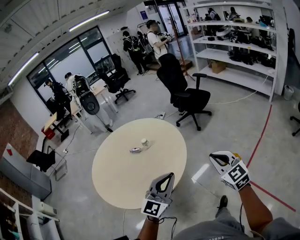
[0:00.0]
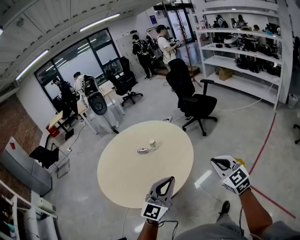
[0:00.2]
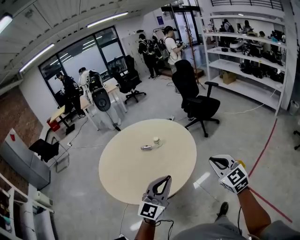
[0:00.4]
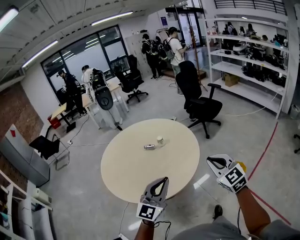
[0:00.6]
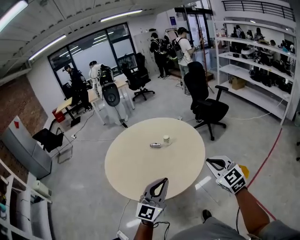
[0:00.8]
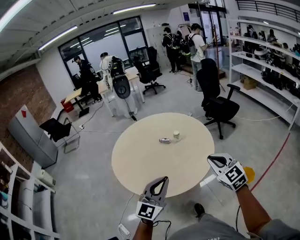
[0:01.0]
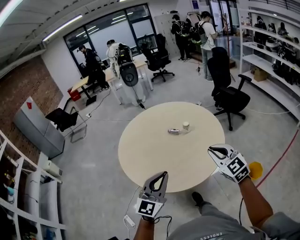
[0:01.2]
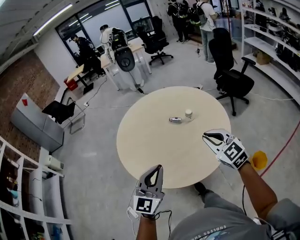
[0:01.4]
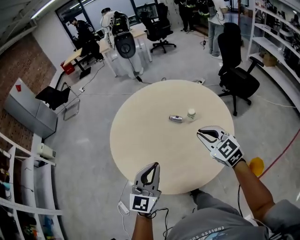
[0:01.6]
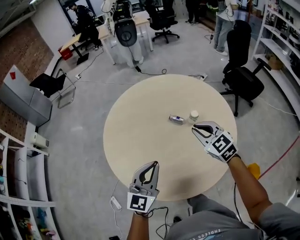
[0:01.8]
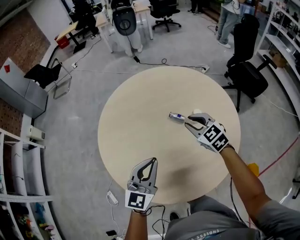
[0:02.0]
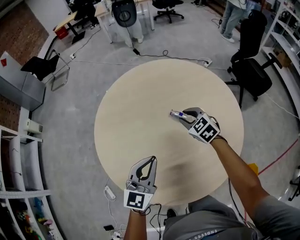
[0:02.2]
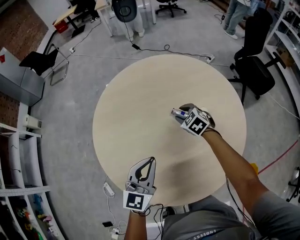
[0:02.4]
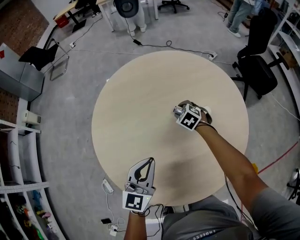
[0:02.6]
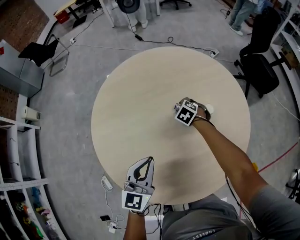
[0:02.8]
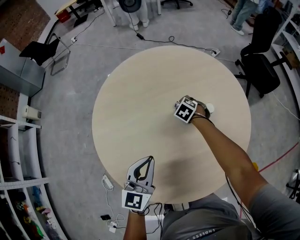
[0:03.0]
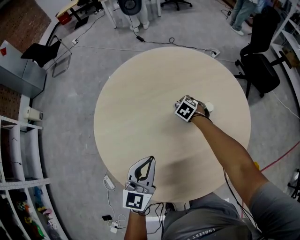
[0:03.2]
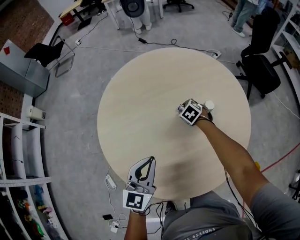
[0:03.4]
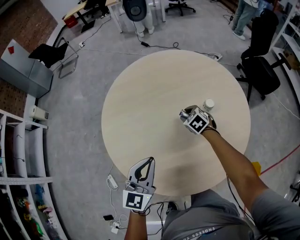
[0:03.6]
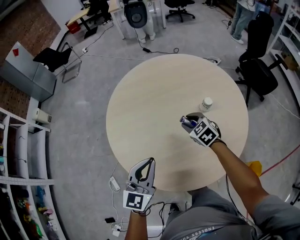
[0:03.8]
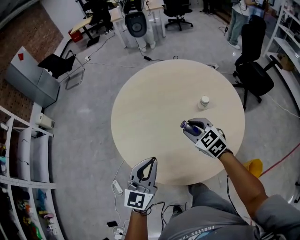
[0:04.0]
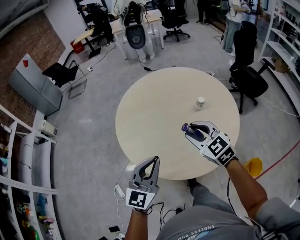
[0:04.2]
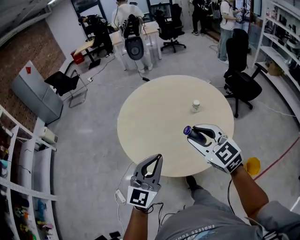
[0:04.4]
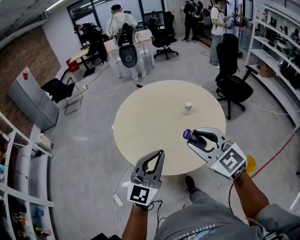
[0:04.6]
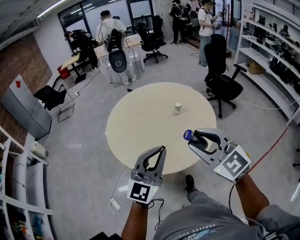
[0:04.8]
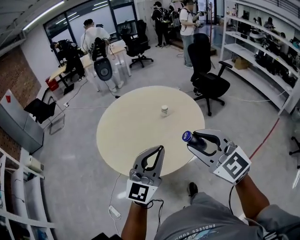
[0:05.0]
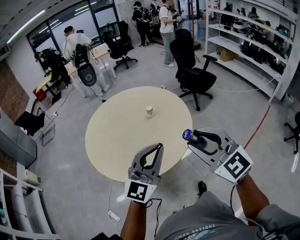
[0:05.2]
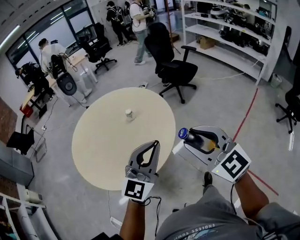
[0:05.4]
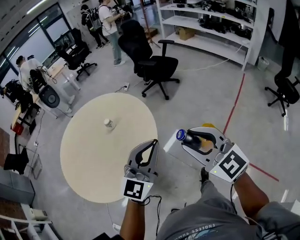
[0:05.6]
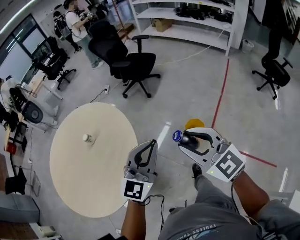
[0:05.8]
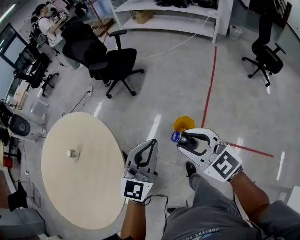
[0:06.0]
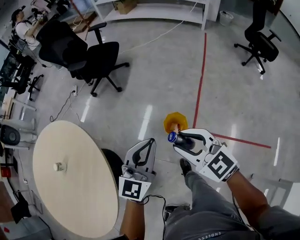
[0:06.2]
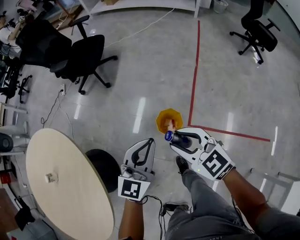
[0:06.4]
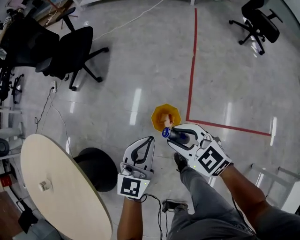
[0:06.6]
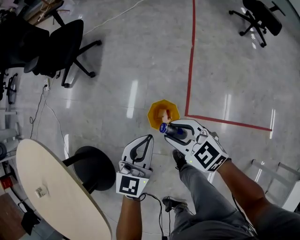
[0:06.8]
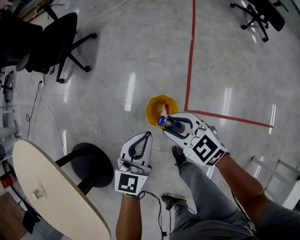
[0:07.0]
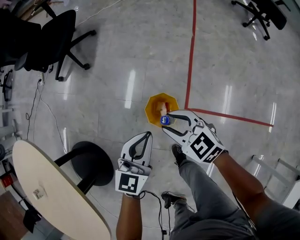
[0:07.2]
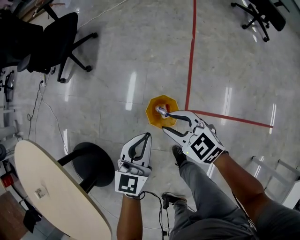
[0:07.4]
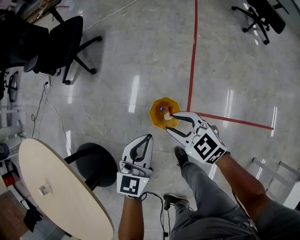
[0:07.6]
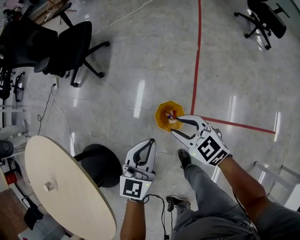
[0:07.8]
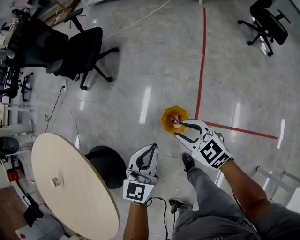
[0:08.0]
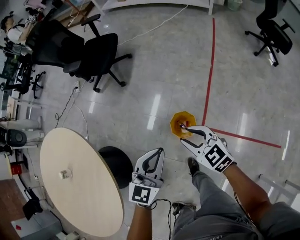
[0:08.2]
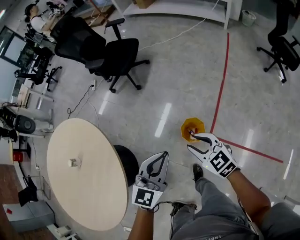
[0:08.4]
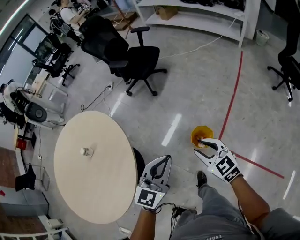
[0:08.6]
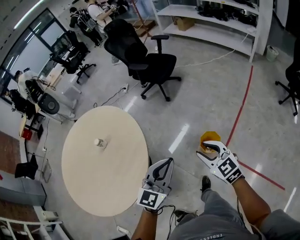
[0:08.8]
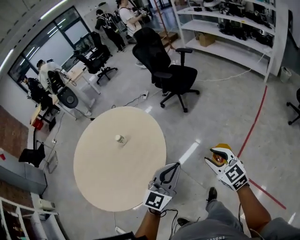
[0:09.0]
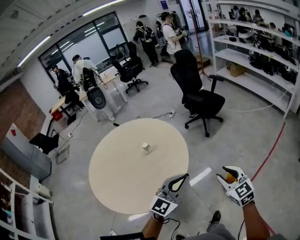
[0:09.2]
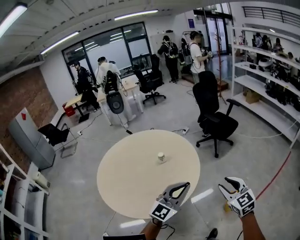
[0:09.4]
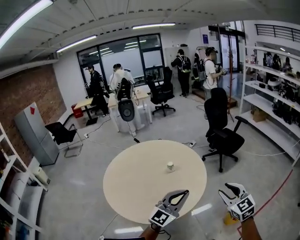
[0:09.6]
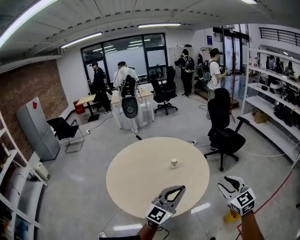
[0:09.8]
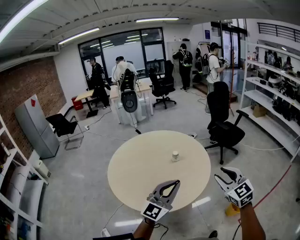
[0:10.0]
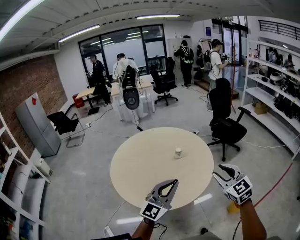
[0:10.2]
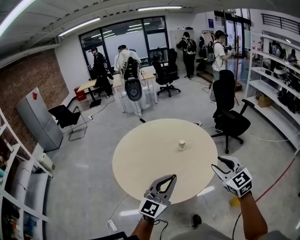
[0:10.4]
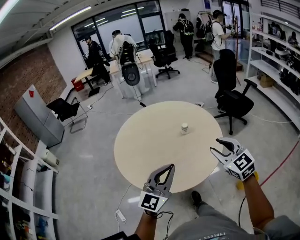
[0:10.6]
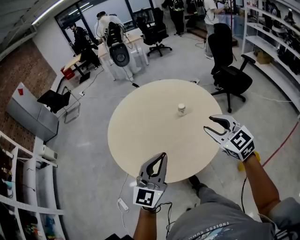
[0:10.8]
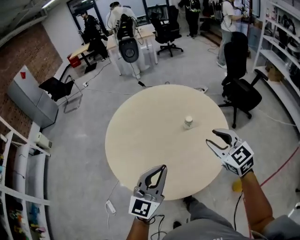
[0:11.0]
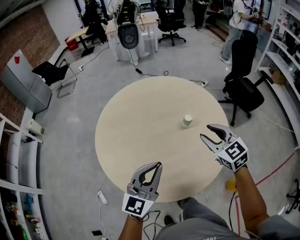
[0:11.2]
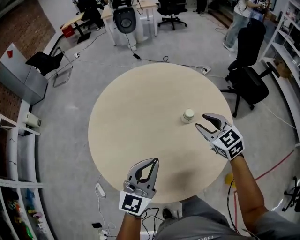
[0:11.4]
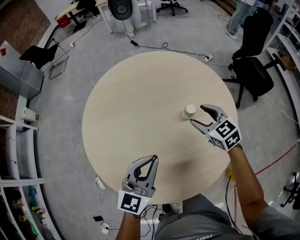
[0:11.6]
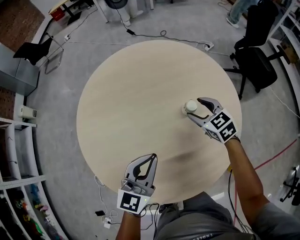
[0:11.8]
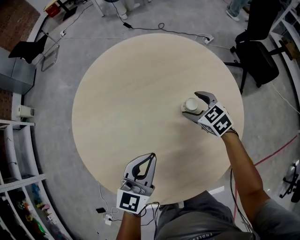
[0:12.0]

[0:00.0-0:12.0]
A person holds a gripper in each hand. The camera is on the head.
0:00.0 to 0:01.6: The left gripper changes place by approximately 40 cm, and turns by about 30 degrees; the right gripper moves approximately 50 cm, and turns by approximately 30 degrees.
0:01.6 to 0:03.0: The left gripper heads forward and downward, covering approximately 25 cm, while the right gripper heads forward and downward, covering roughly 50 cm, points its fingers some 50 degrees further downward, and opens.
0:03.0 to 0:04.4: The left gripper travels backward and upward by approximately 40 cm, and changes its angle by some 20 degrees. Meanwhile the right gripper moves backward and upward, approximately 70 cm, and angles its fingers upward, by approximately 50 degrees.
0:04.4 to 0:06.0: Both grippers are carried some 70 cm. The left gripper swivels about 50 degrees. The right gripper turns by about 40 degrees.
0:06.0 to 0:07.6: The left gripper goes roughly 50 cm downward, forward and to the right, and swivels about 20 degrees. The right gripper travels downward and forward by about 50 cm, and swivels about 20 degrees.
0:07.6 to 0:09.0: The two grippers go approximately 60 cm upward, backward and to the left. The left gripper turns by approximately 30 degrees, while the right gripper changes its angle by roughly 20 degrees.
0:09.0 to 0:10.4: The pair of grippers is taken to the left, some 40 cm. The left gripper turns by about 30 degrees, while the right gripper shifts about 15 cm upward, and changes its angle by some 30 degrees.
0:10.4 to 0:12.0: The pair of grippers is taken forward, roughly 50 cm. Both grippers travel together downward, about 35 cm. The left gripper turns by about 40 degrees, while the right gripper swivels about 40 degrees, and opens.

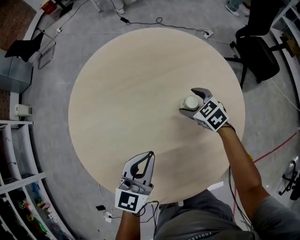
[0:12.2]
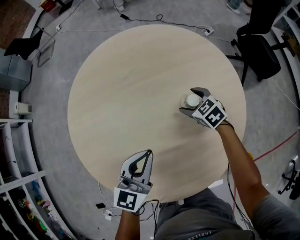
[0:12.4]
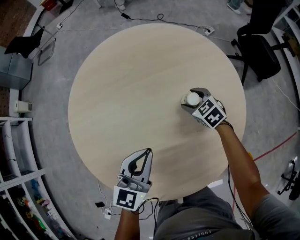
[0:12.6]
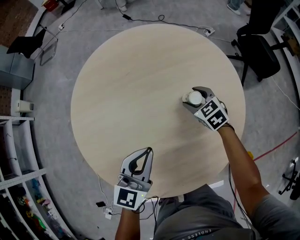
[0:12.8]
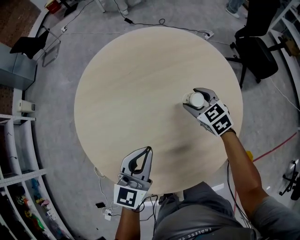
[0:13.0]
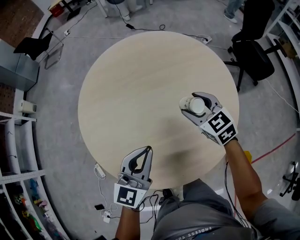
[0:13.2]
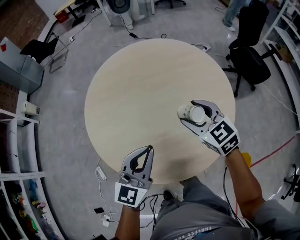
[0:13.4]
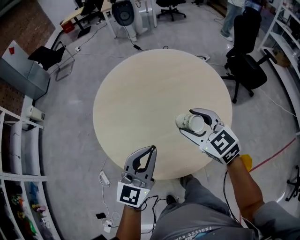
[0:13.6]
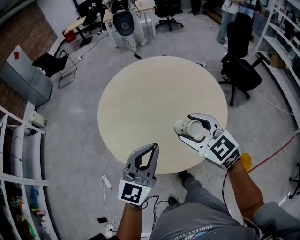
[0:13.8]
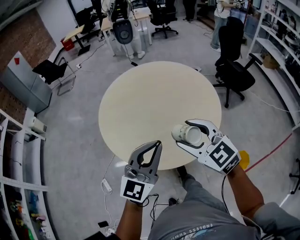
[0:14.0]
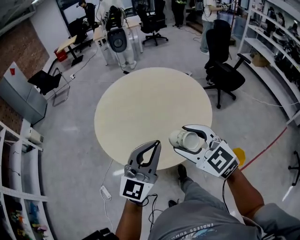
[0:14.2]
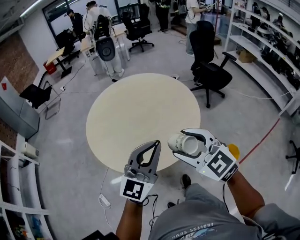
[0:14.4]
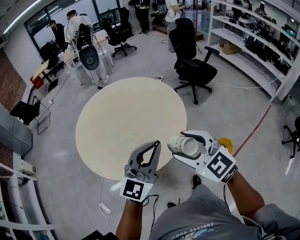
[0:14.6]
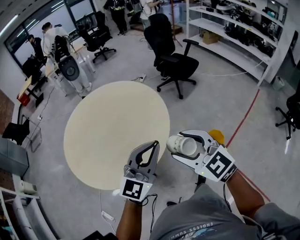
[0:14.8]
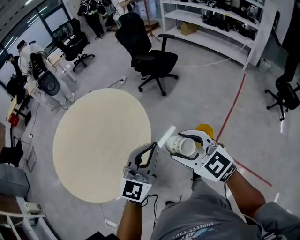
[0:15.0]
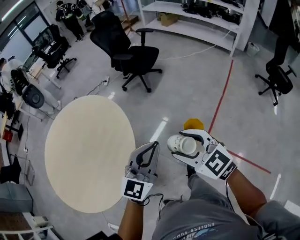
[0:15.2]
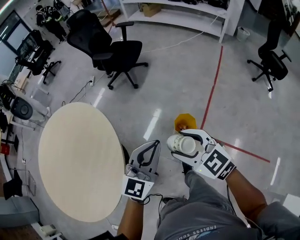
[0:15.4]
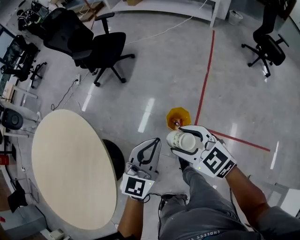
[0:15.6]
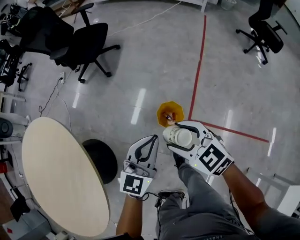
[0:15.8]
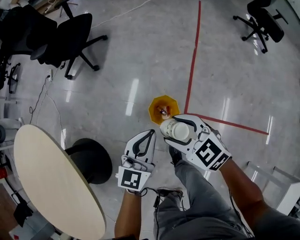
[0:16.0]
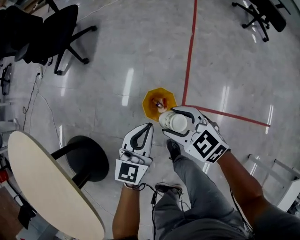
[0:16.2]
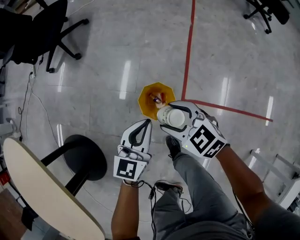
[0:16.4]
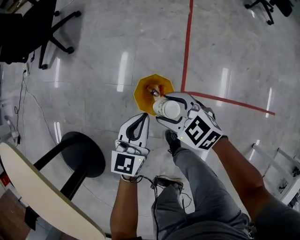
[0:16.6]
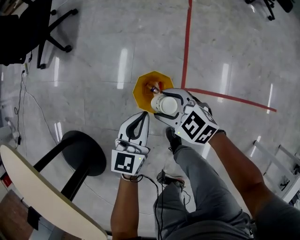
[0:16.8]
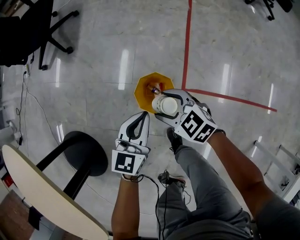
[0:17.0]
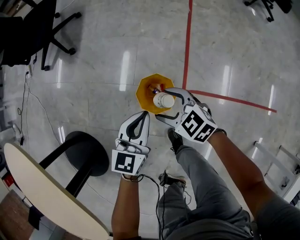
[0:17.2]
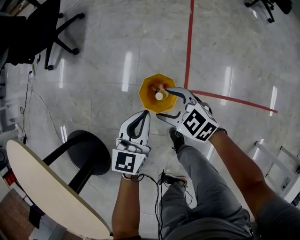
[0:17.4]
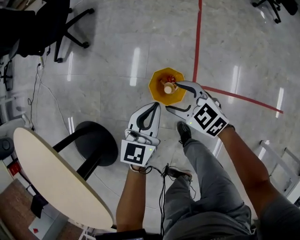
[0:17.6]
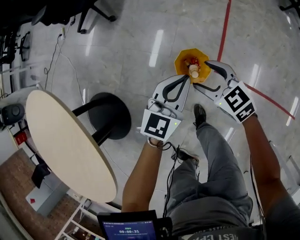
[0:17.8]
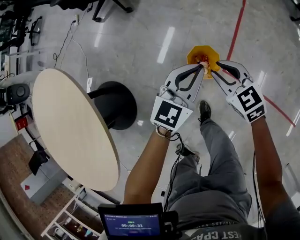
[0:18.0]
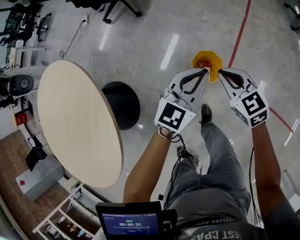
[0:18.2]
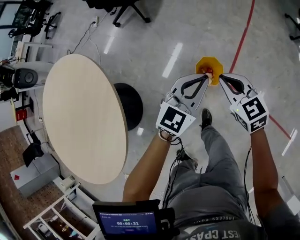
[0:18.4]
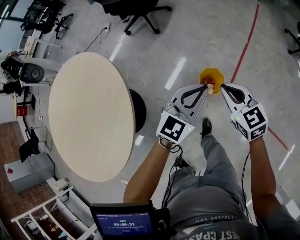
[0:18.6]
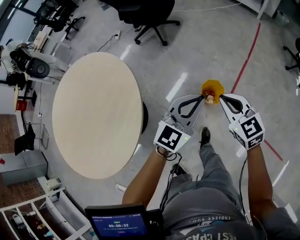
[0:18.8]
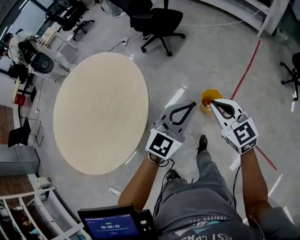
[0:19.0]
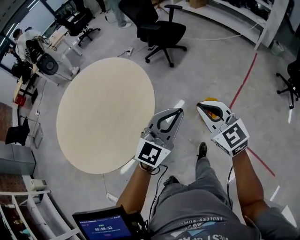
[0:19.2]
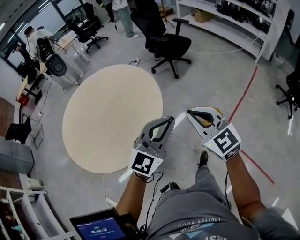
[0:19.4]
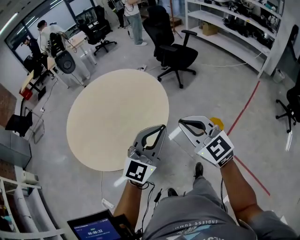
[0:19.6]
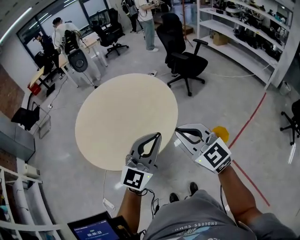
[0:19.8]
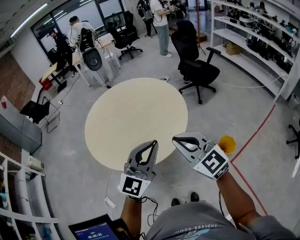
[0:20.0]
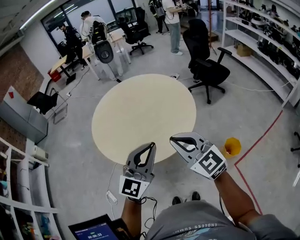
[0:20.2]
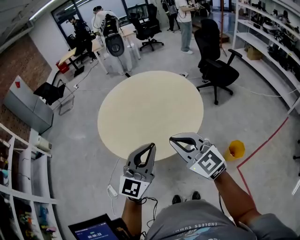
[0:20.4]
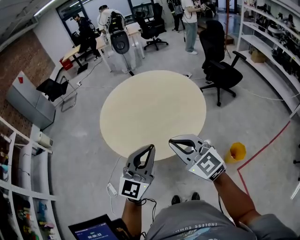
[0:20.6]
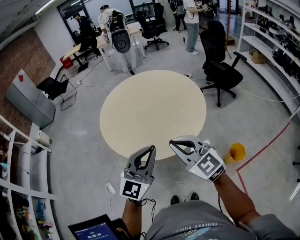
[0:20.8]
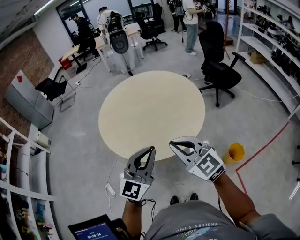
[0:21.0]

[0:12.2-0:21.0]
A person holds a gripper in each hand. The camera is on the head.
0:12.2 to 0:13.6: The left gripper shifts roughly 25 cm backward and upward. The right gripper is displaced backward and upward by some 40 cm, and changes its angle by roughly 20 degrees.
0:13.6 to 0:15.2: The two grippers travel together, about 50 cm. The right gripper turns by about 40 degrees. The left gripper turns by roughly 50 degrees.
0:15.2 to 0:16.6: The two grippers travel together, to the right and forward, approximately 40 cm. The grippers both shift downward by some 60 cm. The right gripper turns by about 30 degrees. The left gripper turns by approximately 40 degrees.
0:16.6 to 0:18.0: Both grippers move upward, about 15 cm. The right gripper closes its fingers.
0:18.0 to 0:19.6: Both grippers are carried backward and to the left, roughly 60 cm. Both grippers travel together upward, roughly 50 cm. The left gripper turns by some 40 degrees. The right gripper changes its angle by approximately 40 degrees.
0:19.6 to 0:21.0: The left gripper moves roughly 20 cm, and rotates approximately 40 degrees; the right gripper changes place by about 20 cm, and swivels some 30 degrees.

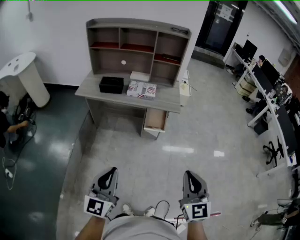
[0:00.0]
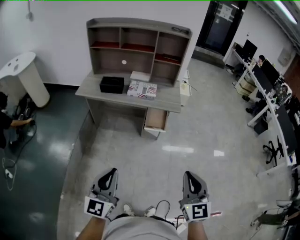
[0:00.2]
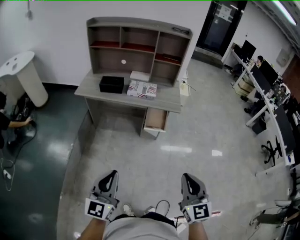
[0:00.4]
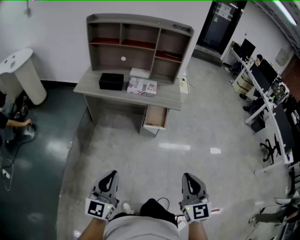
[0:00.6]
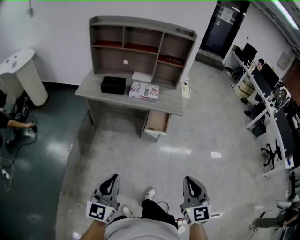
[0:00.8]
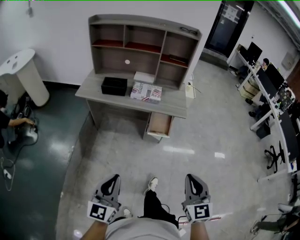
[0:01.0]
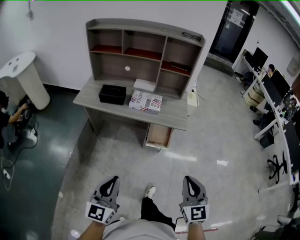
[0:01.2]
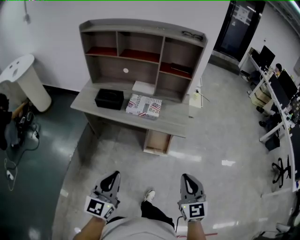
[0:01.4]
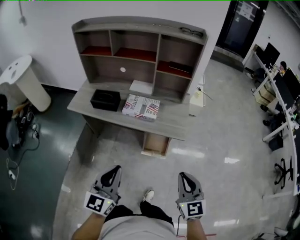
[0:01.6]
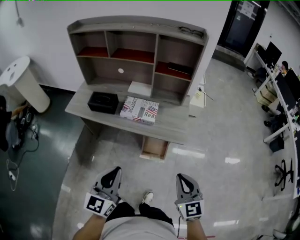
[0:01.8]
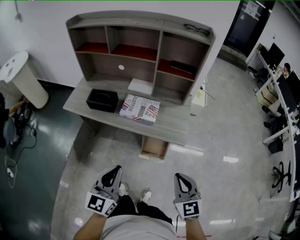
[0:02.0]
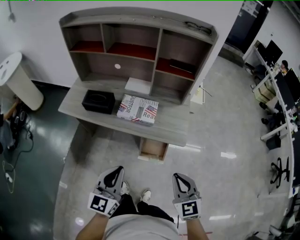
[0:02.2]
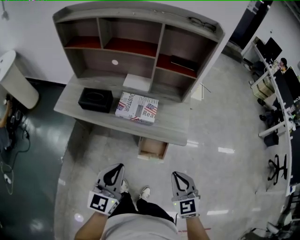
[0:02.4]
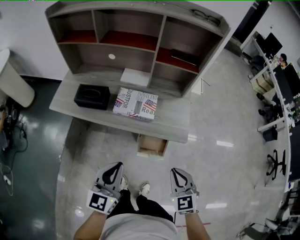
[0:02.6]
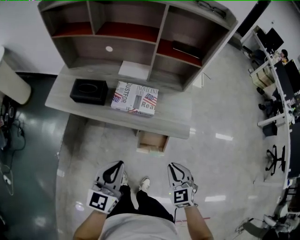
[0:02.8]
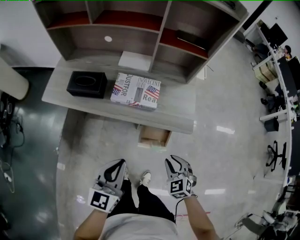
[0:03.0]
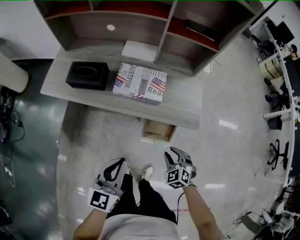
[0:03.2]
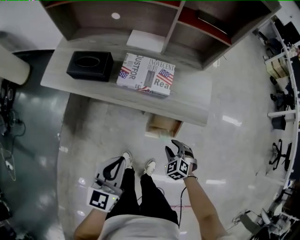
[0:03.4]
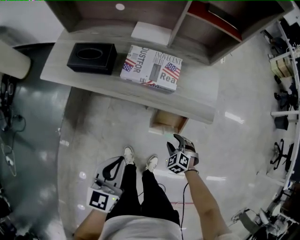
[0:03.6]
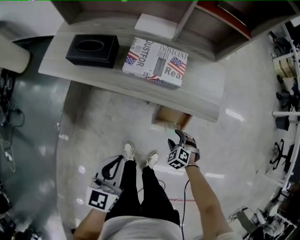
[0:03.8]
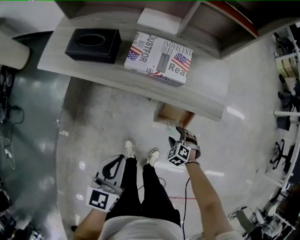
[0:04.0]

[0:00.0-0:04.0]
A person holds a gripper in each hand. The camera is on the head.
0:00.0 to 0:01.4: Both grippers move forward, approximately 25 cm.
0:01.4 to 0:02.6: The left gripper shifts roughly 20 cm forward; the right gripper moves forward and downward, about 20 cm.
0:02.6 to 0:04.0: The left gripper is displaced downward by about 15 cm. Meanwhile the right gripper travels downward by approximately 40 cm, tilts its fingers some 40 degrees downward, and opens.
